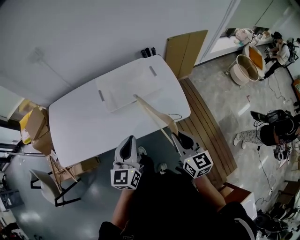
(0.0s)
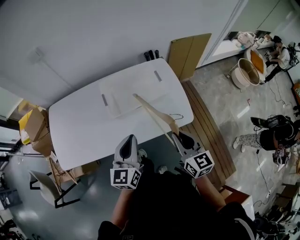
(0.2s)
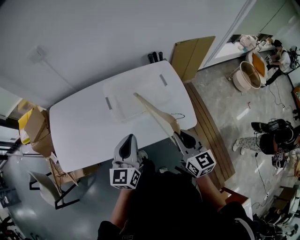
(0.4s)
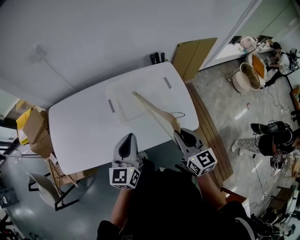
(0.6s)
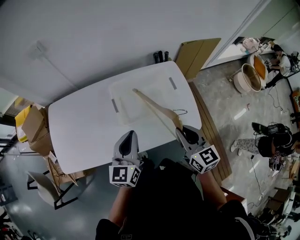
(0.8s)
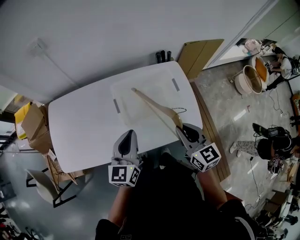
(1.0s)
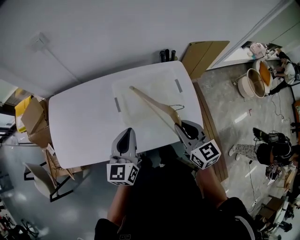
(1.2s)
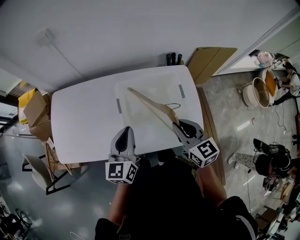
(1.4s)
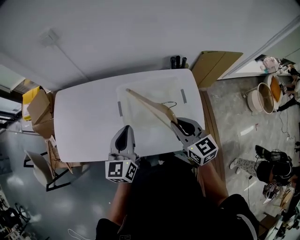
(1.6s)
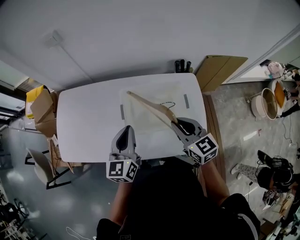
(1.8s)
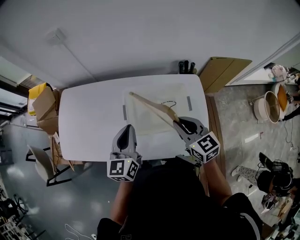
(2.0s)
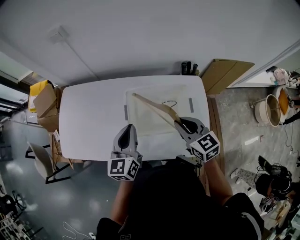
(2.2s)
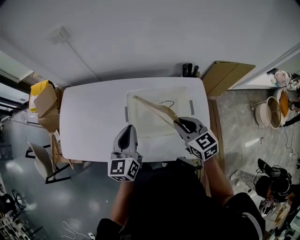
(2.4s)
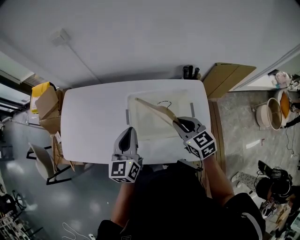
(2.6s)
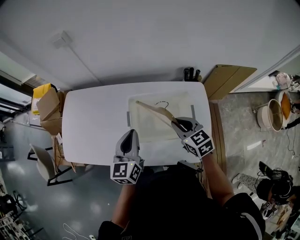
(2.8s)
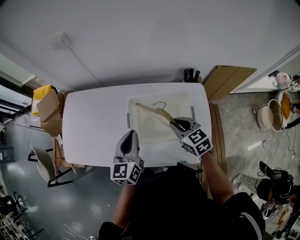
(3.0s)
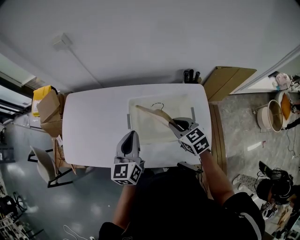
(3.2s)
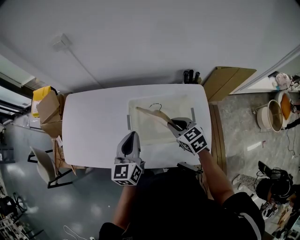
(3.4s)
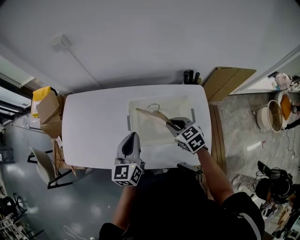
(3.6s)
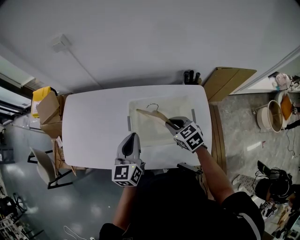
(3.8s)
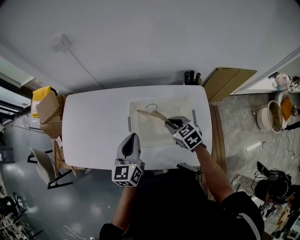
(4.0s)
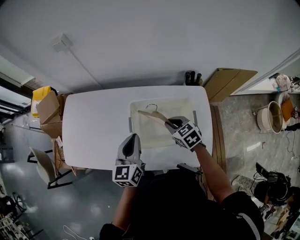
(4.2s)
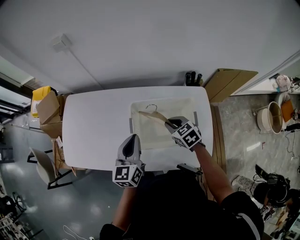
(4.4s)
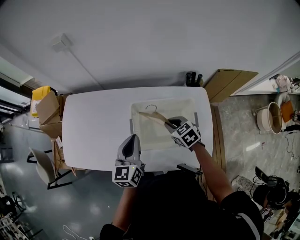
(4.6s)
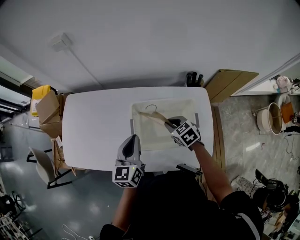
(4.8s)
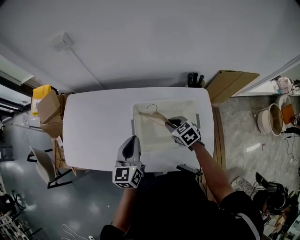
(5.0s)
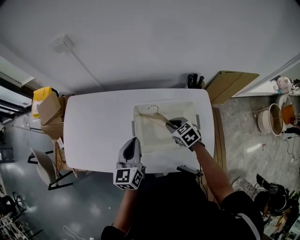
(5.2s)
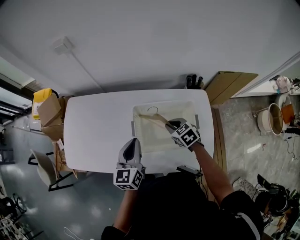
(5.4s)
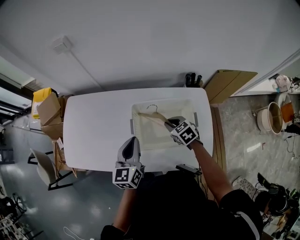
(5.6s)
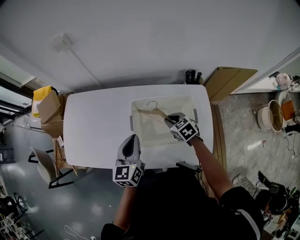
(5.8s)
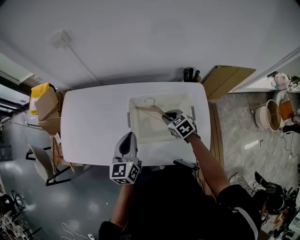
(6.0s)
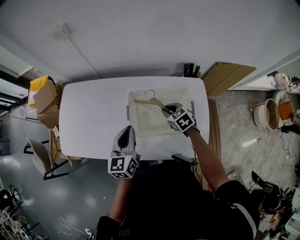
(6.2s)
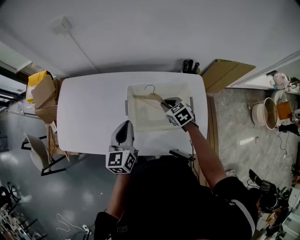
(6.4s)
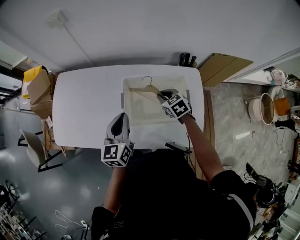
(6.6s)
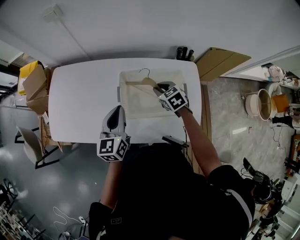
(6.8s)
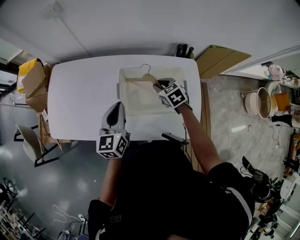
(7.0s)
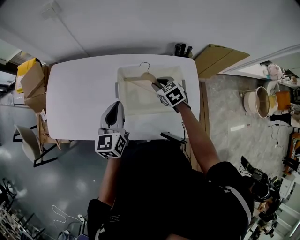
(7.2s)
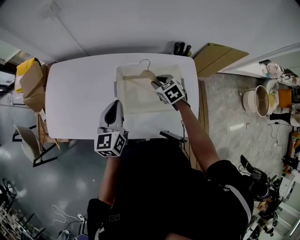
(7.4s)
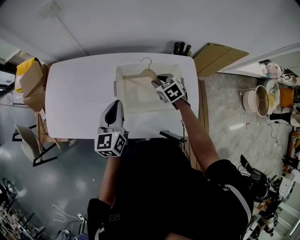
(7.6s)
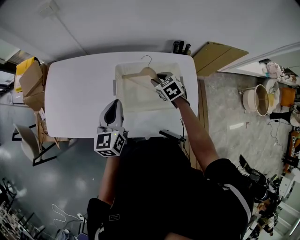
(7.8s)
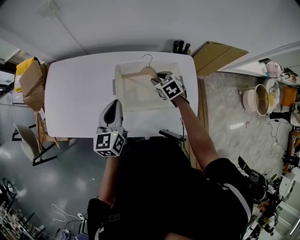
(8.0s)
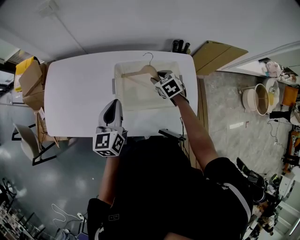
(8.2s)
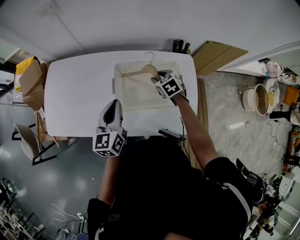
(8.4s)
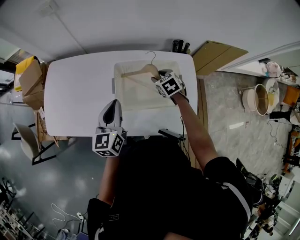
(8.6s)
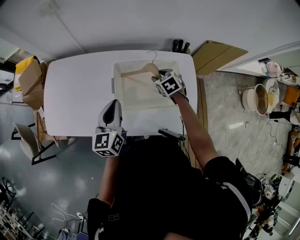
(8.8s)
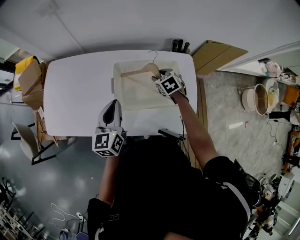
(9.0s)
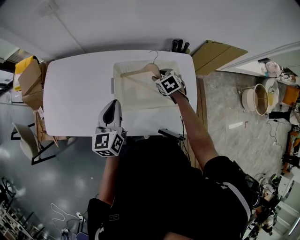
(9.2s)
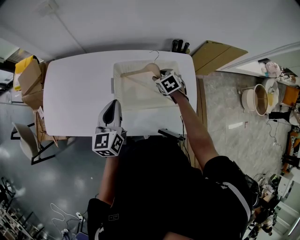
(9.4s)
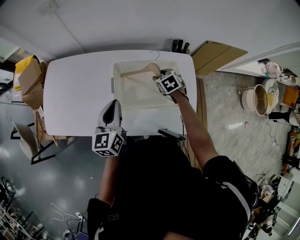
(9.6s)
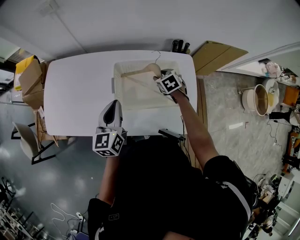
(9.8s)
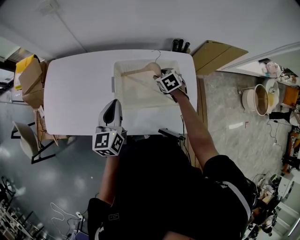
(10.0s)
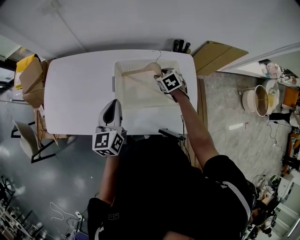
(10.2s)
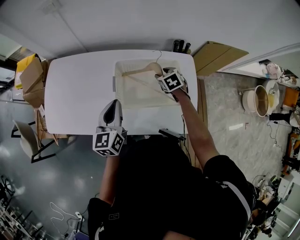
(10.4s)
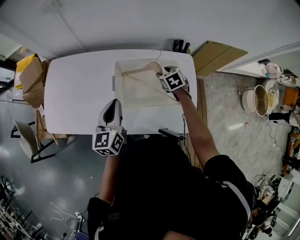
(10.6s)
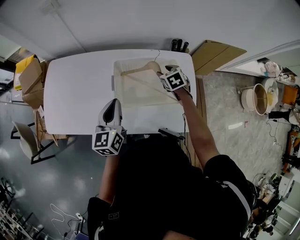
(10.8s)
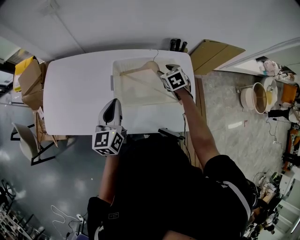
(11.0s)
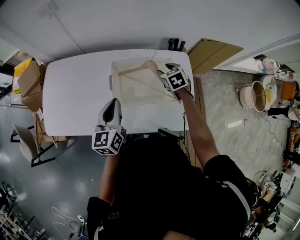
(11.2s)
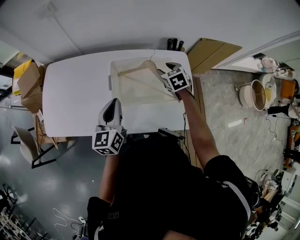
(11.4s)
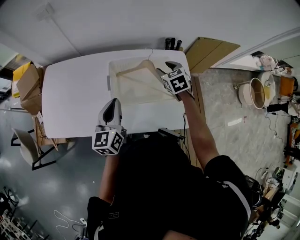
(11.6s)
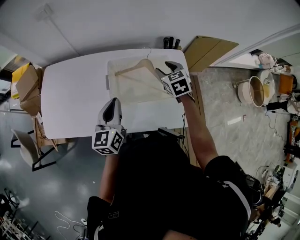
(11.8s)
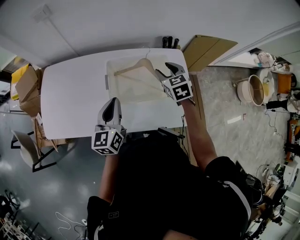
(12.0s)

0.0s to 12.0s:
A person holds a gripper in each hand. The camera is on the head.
0.0s to 1.6s: The two grippers go roughly 20 cm forward. The right gripper changes its angle by some 30 degrees.
1.6s to 3.0s: The right gripper travels forward and downward by about 10 cm.
3.0s to 4.4s: The right gripper travels downward by about 5 cm.
4.4s to 7.6s: The grippers make only small movements.
7.6s to 10.4s: The grippers stay close to where they were, moving slightly.
10.4s to 12.0s: The right gripper moves upward and backward, some 15 cm.

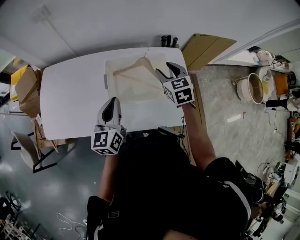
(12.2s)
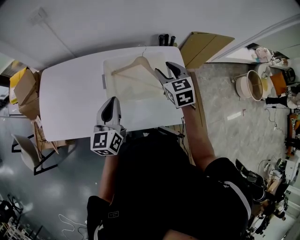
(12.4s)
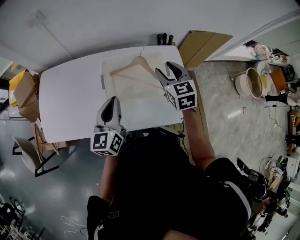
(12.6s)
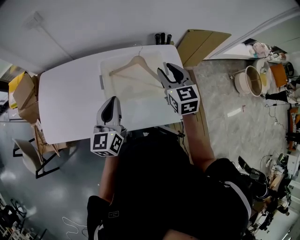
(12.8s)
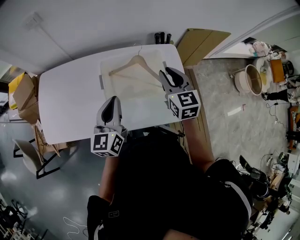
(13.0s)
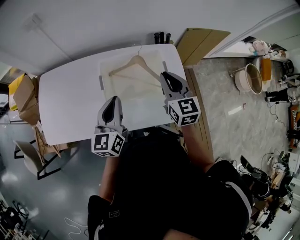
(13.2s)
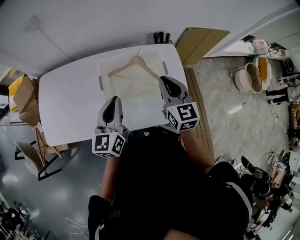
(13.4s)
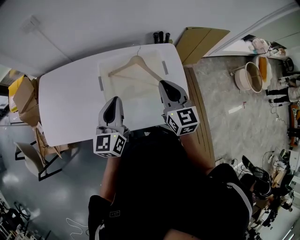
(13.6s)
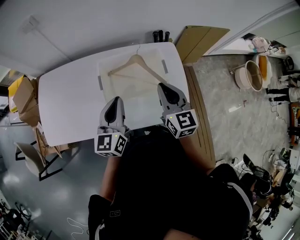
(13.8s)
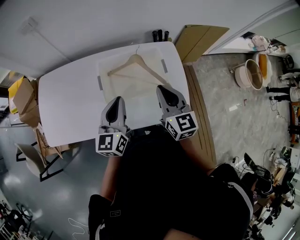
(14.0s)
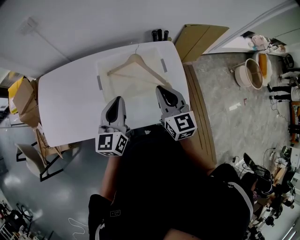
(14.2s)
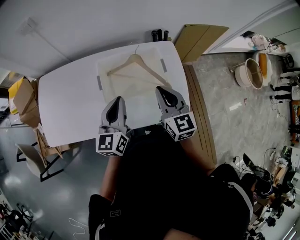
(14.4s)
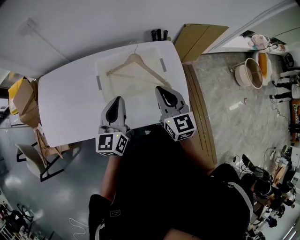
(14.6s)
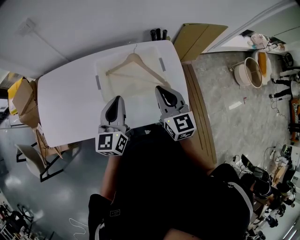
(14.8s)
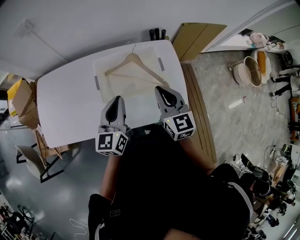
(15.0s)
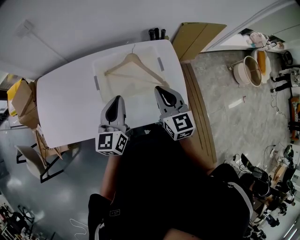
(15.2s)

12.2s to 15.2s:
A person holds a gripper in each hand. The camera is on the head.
12.2s to 13.8s: The right gripper heads backward and upward, covering some 10 cm, swivels some 20 degrees, and closes up.
13.8s to 15.2s: There are only small adjustments of the grippers.

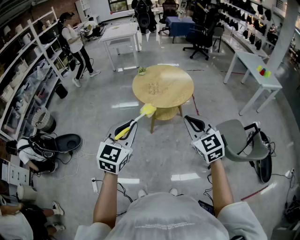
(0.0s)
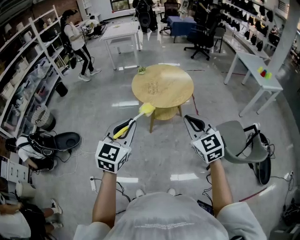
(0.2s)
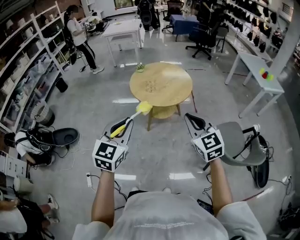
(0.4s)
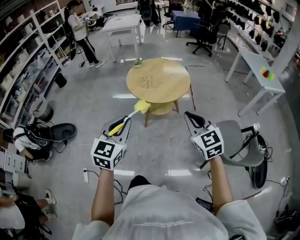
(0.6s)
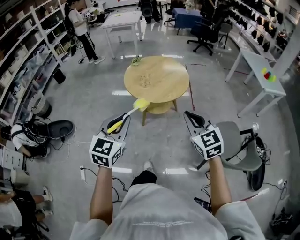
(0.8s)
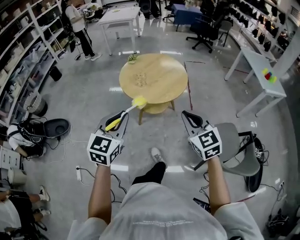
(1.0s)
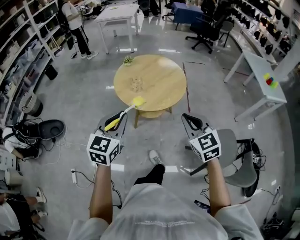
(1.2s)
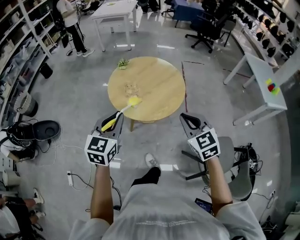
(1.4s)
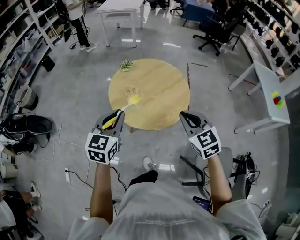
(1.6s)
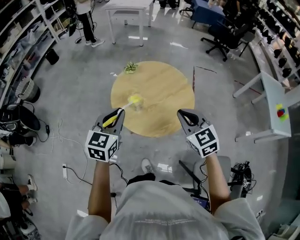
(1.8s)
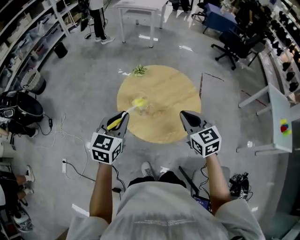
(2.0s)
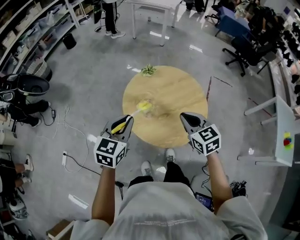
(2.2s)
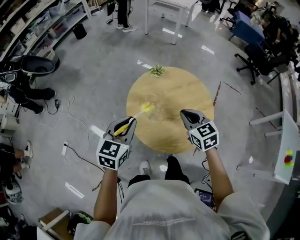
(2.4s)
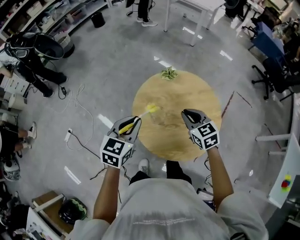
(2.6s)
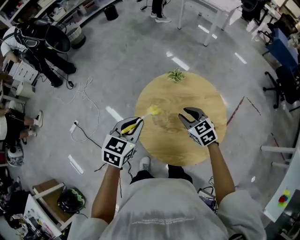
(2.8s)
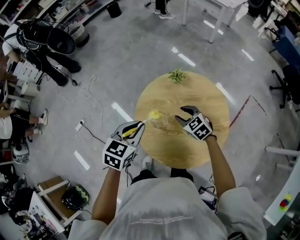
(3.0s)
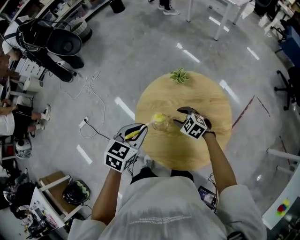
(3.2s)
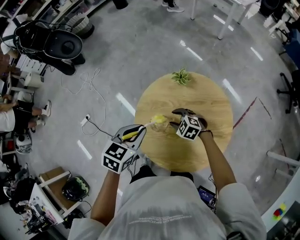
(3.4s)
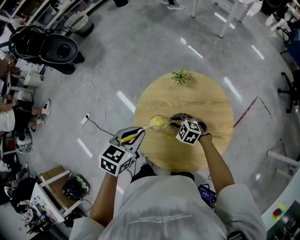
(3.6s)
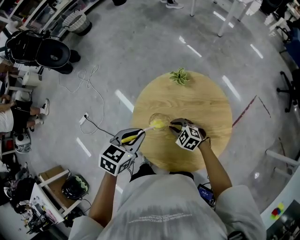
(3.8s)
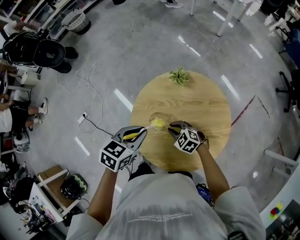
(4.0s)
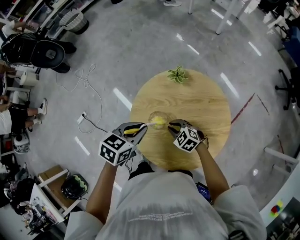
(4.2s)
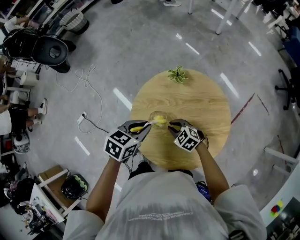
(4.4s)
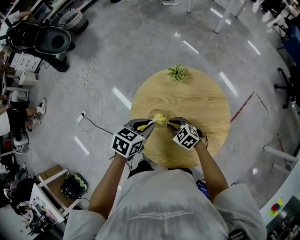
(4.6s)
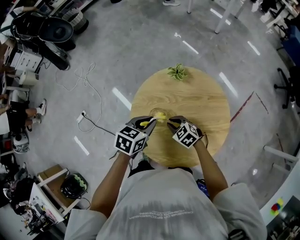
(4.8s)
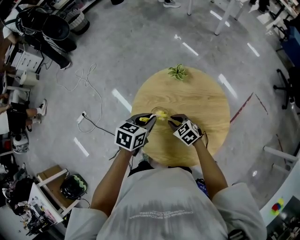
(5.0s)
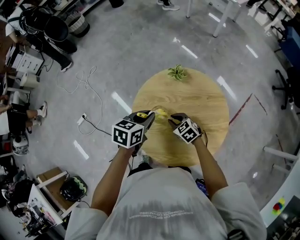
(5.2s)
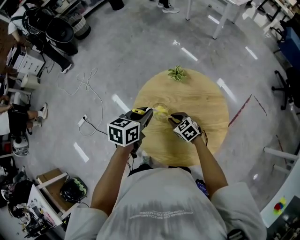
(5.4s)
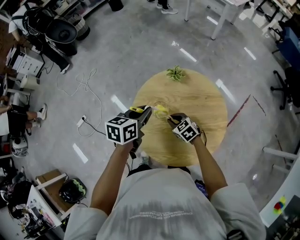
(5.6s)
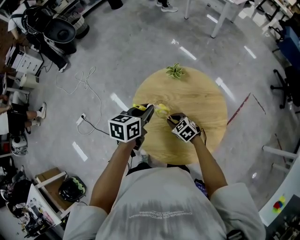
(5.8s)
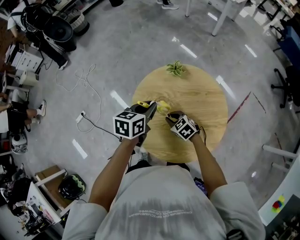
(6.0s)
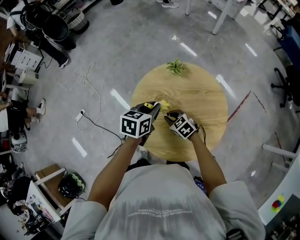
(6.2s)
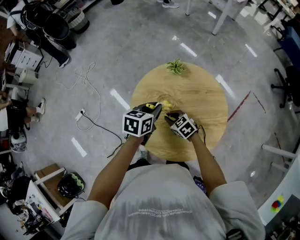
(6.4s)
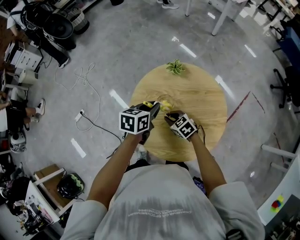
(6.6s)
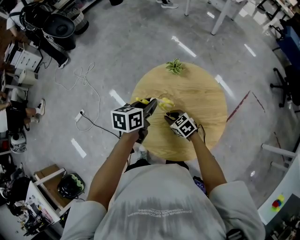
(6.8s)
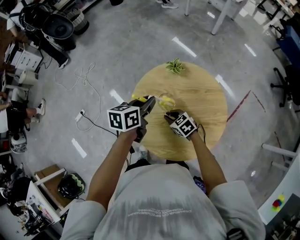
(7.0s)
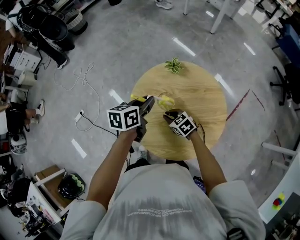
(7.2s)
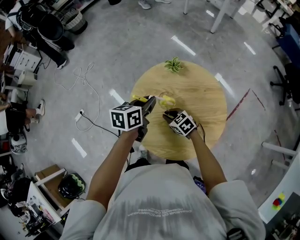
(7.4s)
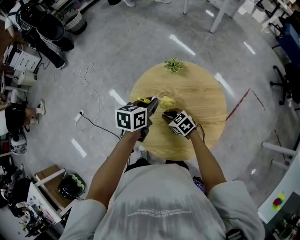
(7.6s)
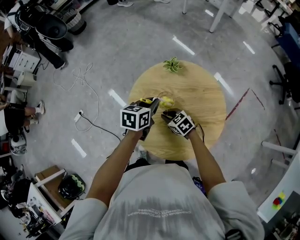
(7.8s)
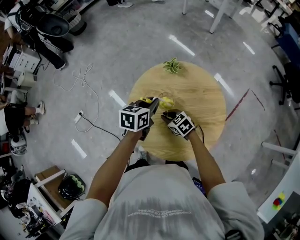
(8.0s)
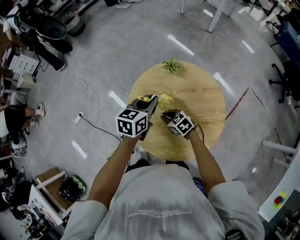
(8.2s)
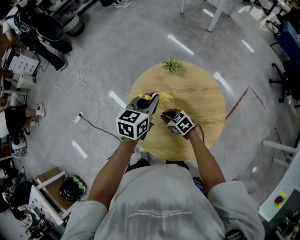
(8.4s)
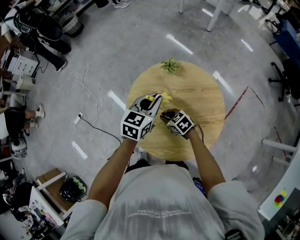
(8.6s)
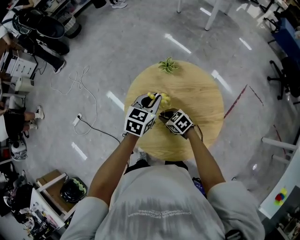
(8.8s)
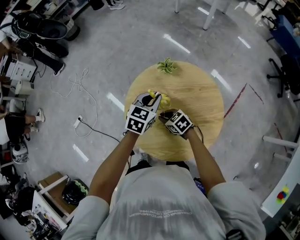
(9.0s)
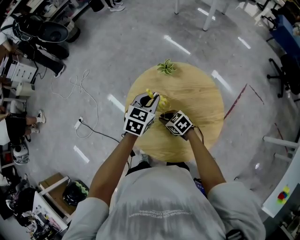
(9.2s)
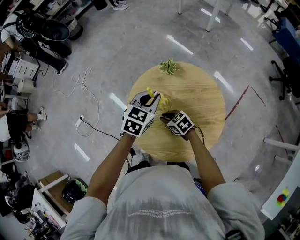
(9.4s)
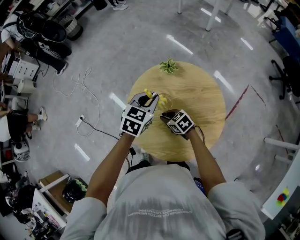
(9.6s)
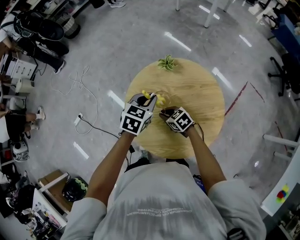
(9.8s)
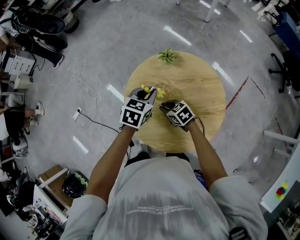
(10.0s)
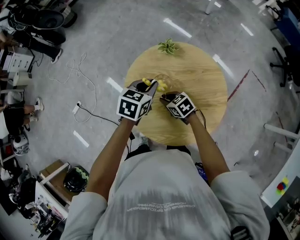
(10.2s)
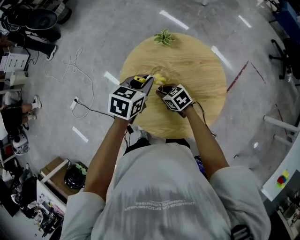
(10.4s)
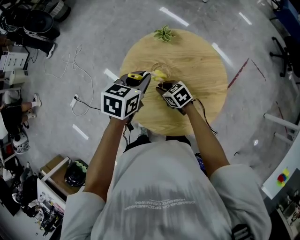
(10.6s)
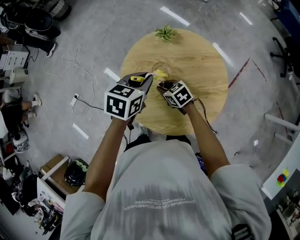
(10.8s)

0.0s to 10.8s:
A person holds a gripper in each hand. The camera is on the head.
0.0s to 1.6s: The grippers both shift forward by some 35 cm.
1.6s to 3.0s: The right gripper moves roughly 40 cm, changes its angle by roughly 50 degrees, and opens its fingers; the left gripper shifts by some 20 cm, and rotates roughly 30 degrees.
3.0s to 4.6s: The right gripper moves downward, about 10 cm, and closes up; the left gripper heads downward and to the right, covering approximately 10 cm, and changes its angle by about 20 degrees.
6.2s to 7.8s: There are only small adjustments of the grippers.
7.8s to 9.2s: The left gripper rotates about 30 degrees.
9.2s to 10.8s: The left gripper moves roughly 5 cm.
